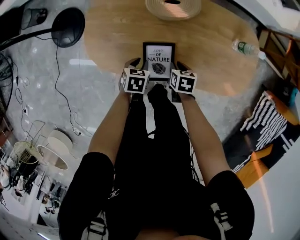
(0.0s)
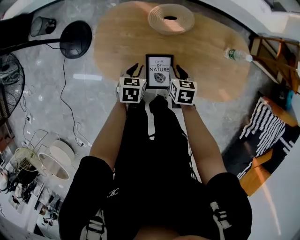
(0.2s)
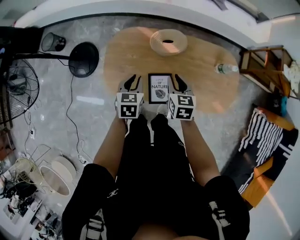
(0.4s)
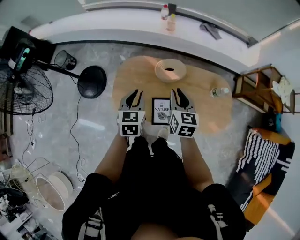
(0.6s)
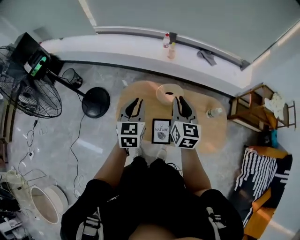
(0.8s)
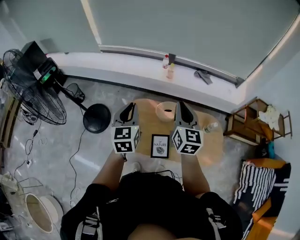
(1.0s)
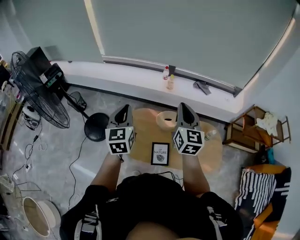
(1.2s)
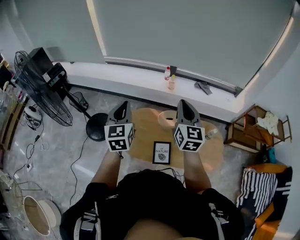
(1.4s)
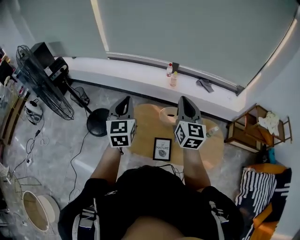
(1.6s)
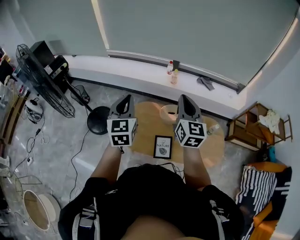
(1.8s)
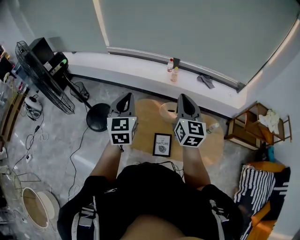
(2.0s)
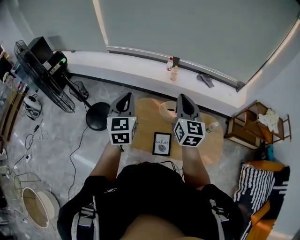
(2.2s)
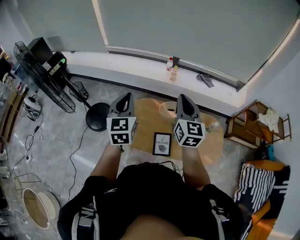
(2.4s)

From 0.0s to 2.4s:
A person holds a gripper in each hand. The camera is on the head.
From 0.0s to 1.2s: The grippers both shift upward by about 70 cm. The left gripper tilts its fingers roughly 60 degrees upward, and closes; the right gripper tips its fingers upward by approximately 60 degrees, and closes up.
From 1.2s to 2.4s: The grippers make only small movements.

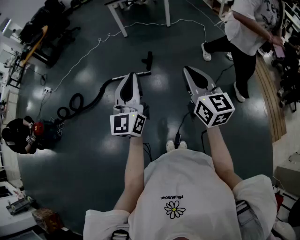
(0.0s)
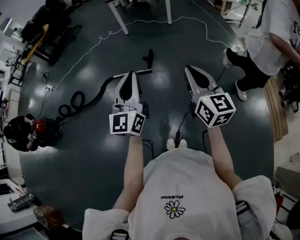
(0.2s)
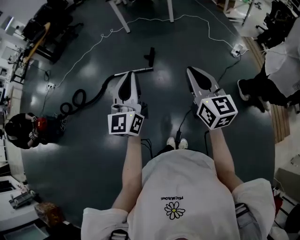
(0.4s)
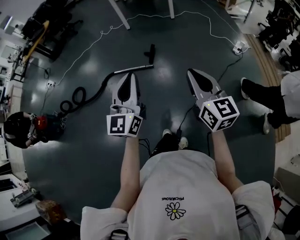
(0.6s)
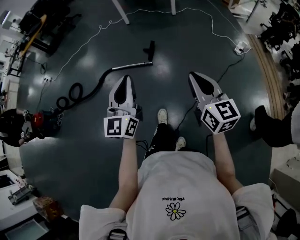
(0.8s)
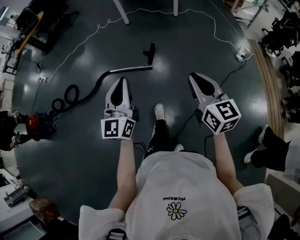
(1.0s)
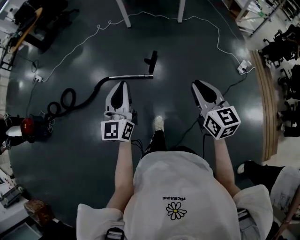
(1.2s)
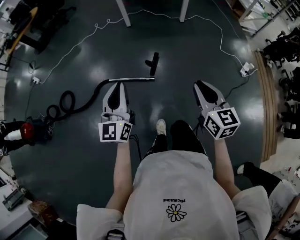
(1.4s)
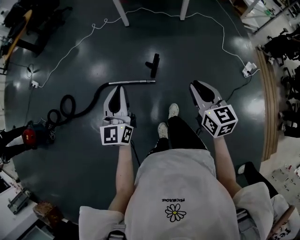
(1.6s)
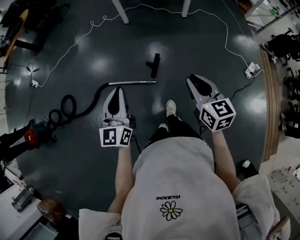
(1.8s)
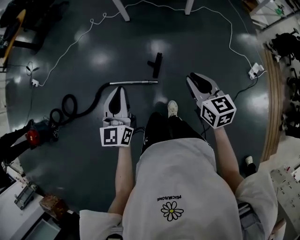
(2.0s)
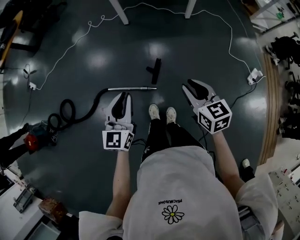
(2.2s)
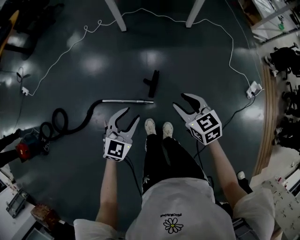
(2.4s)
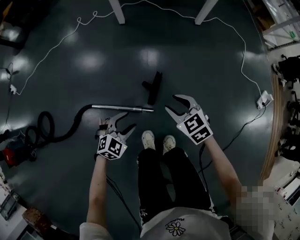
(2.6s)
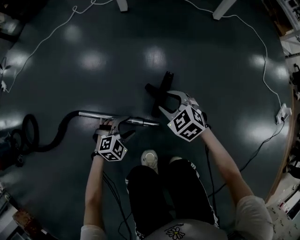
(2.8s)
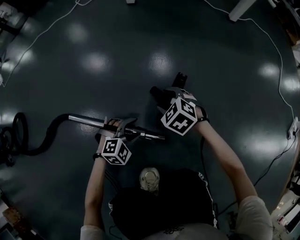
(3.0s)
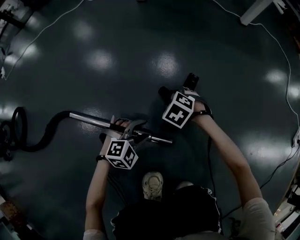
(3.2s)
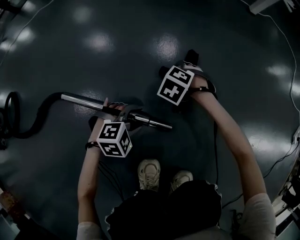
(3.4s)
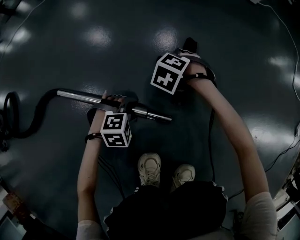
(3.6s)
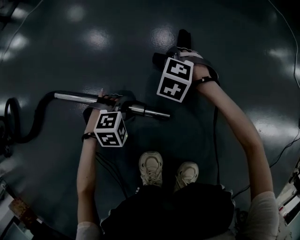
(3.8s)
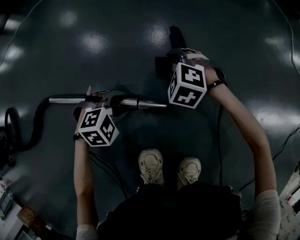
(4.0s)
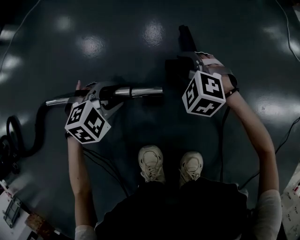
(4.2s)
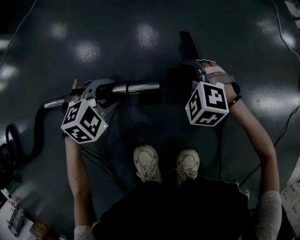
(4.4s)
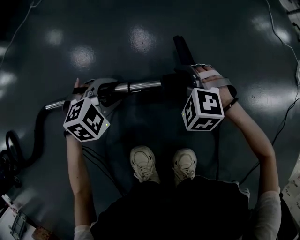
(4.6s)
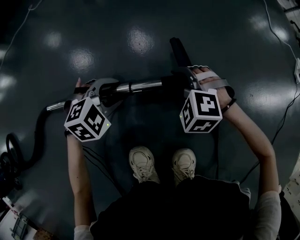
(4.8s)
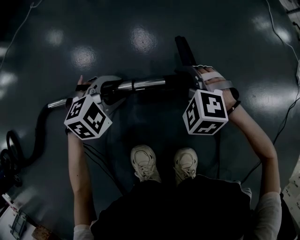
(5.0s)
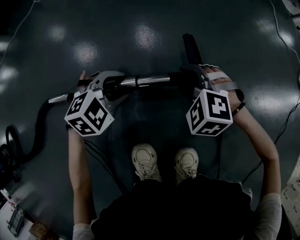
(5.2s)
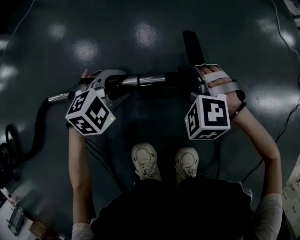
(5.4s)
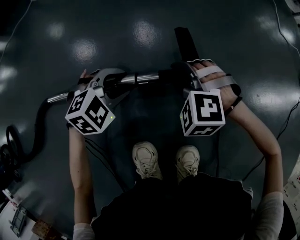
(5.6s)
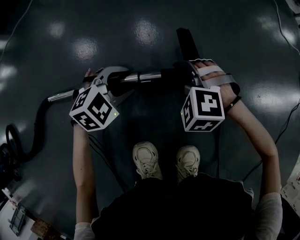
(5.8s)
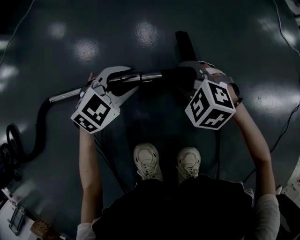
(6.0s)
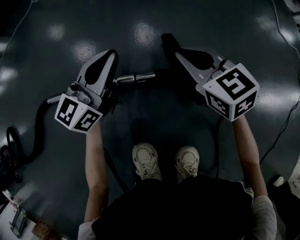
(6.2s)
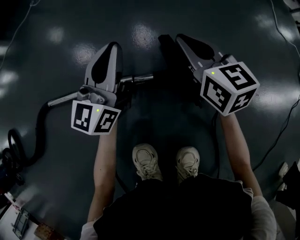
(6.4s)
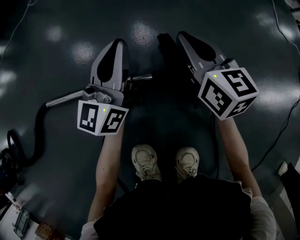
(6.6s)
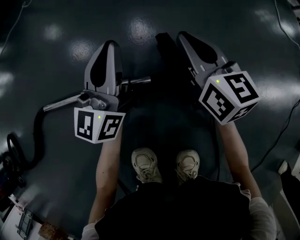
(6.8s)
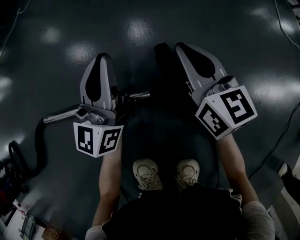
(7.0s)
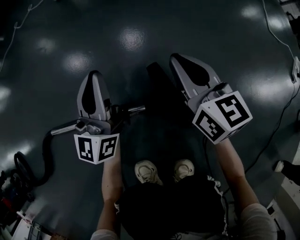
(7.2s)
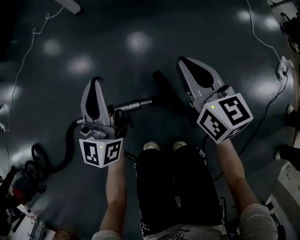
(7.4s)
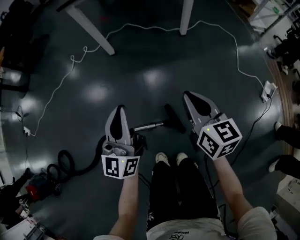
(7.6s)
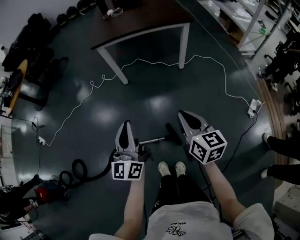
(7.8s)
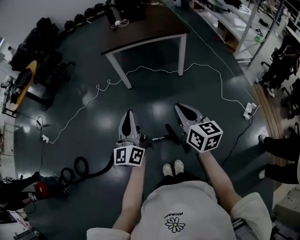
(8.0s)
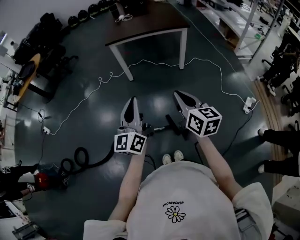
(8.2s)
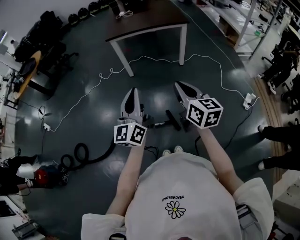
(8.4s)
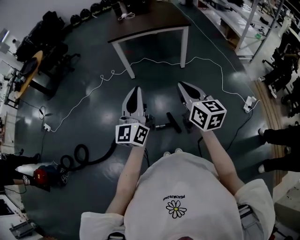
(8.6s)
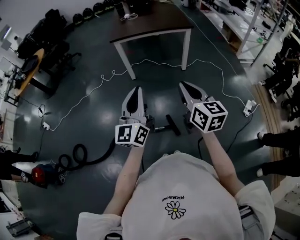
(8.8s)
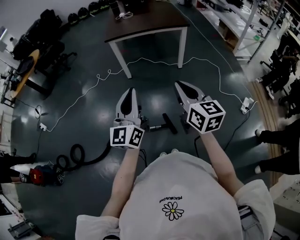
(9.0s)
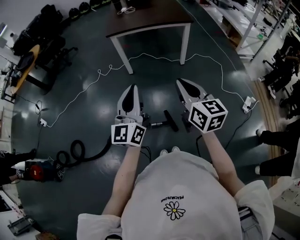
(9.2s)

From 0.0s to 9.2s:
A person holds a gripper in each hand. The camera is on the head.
From 0.0s to 1.6s: The grippers both shift forward by approximately 35 cm. The right gripper changes its angle by approximately 20 degrees.
From 1.6s to 3.0s: The left gripper is displaced downward by some 80 cm, points its fingers roughly 60 degrees further downward, and opens, while the right gripper shifts roughly 80 cm downward and forward, tips its fingers downward by approximately 30 degrees, and opens up.
From 3.0s to 4.6s: The left gripper moves upward, about 5 cm. Meanwhile the right gripper moves some 10 cm downward and comes back, and changes its angle by approximately 20 degrees.
From 4.6s to 6.2s: The left gripper moves upward and forward, about 15 cm, angles its fingers upward, by some 60 degrees, and closes up. The right gripper shifts approximately 10 cm upward, twists roughly 50 degrees clockwise, seen from behind, and closes.
From 6.2s to 7.6s: The two grippers go approximately 60 cm upward. The right gripper changes its angle by some 30 degrees; the left gripper turns by some 30 degrees.
From 7.6s to 9.2s: Both grippers travel together upward and backward, some 40 cm.

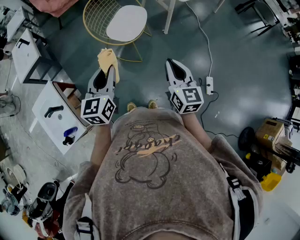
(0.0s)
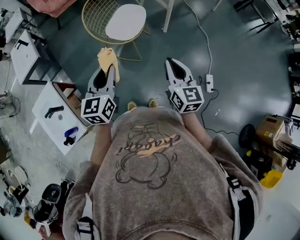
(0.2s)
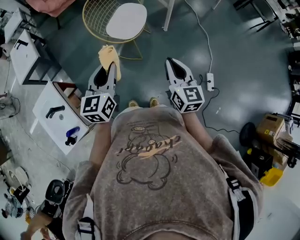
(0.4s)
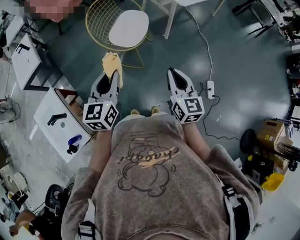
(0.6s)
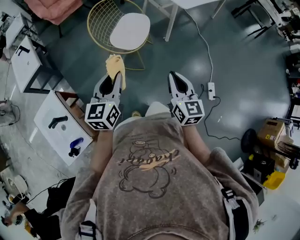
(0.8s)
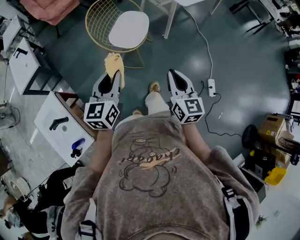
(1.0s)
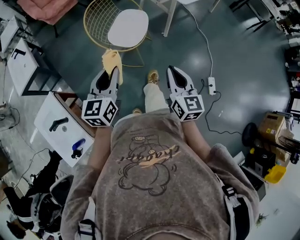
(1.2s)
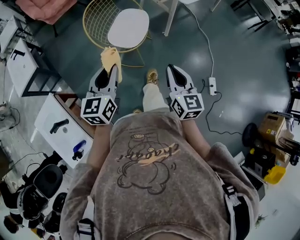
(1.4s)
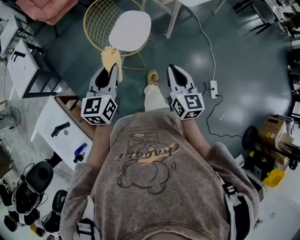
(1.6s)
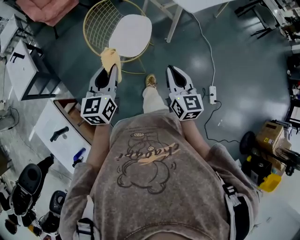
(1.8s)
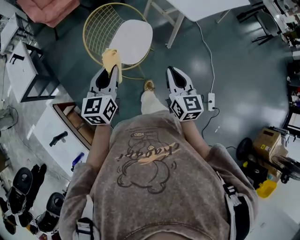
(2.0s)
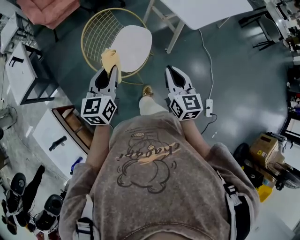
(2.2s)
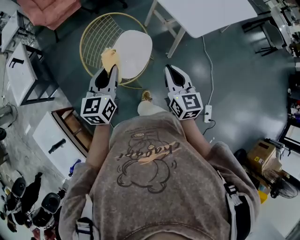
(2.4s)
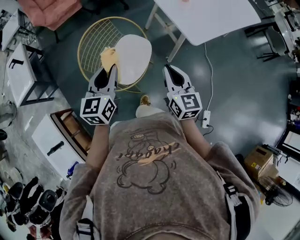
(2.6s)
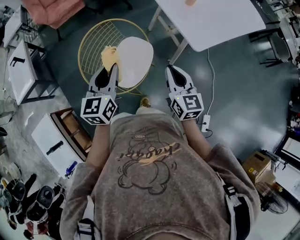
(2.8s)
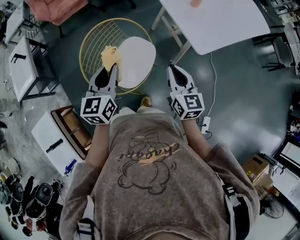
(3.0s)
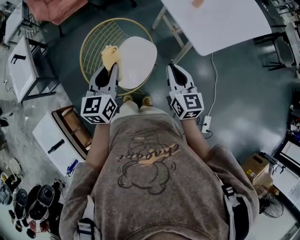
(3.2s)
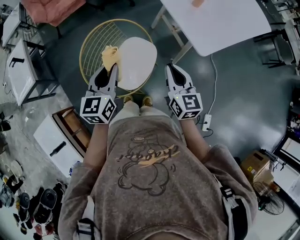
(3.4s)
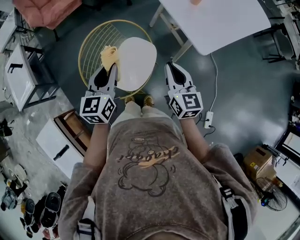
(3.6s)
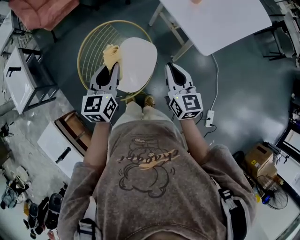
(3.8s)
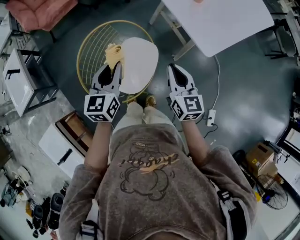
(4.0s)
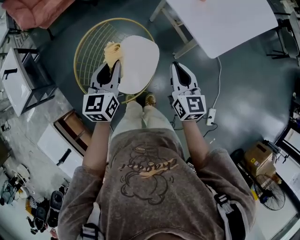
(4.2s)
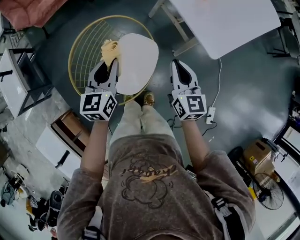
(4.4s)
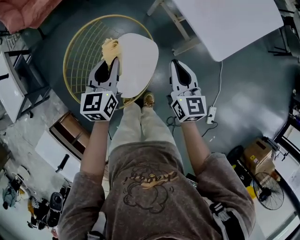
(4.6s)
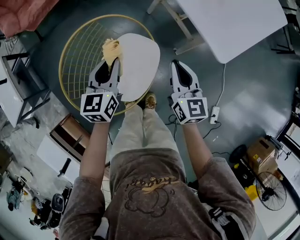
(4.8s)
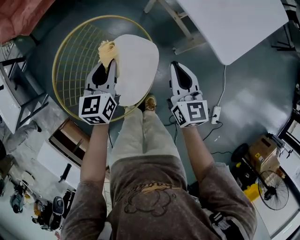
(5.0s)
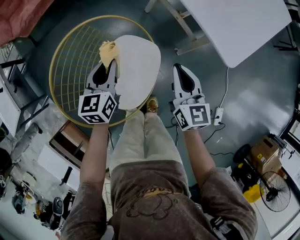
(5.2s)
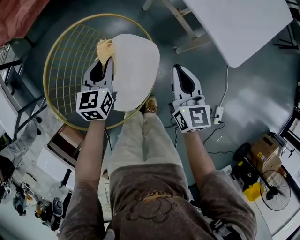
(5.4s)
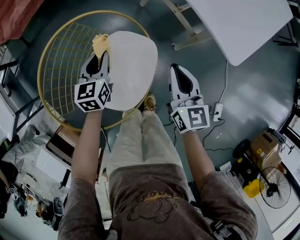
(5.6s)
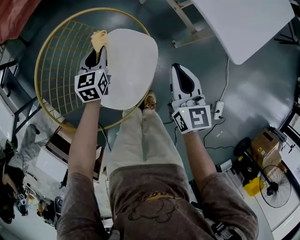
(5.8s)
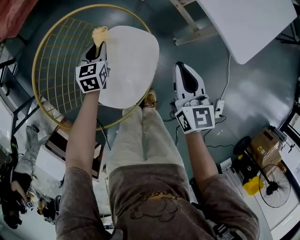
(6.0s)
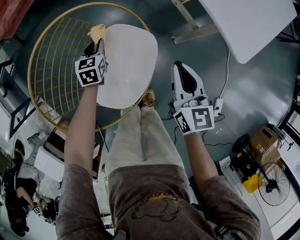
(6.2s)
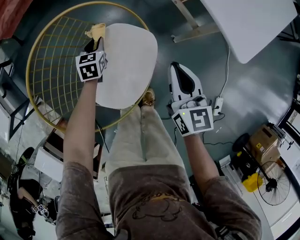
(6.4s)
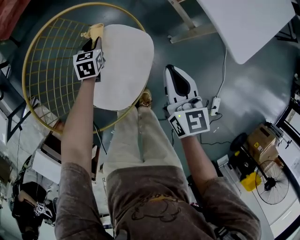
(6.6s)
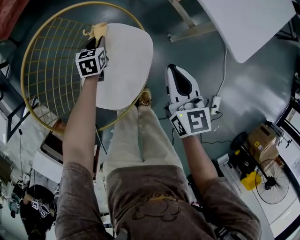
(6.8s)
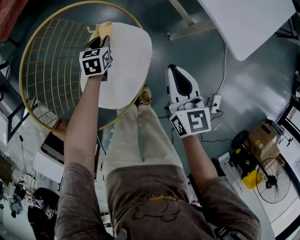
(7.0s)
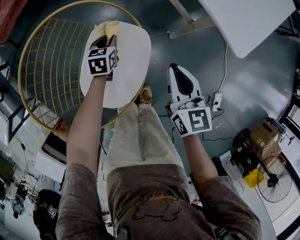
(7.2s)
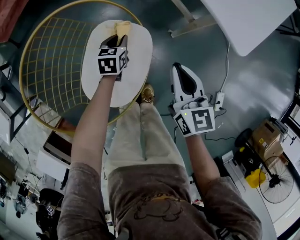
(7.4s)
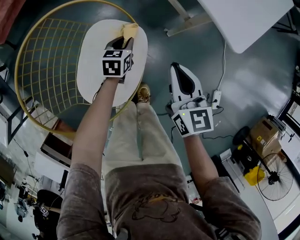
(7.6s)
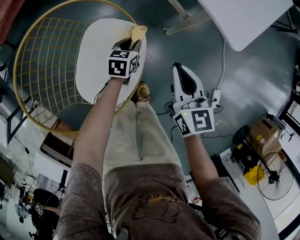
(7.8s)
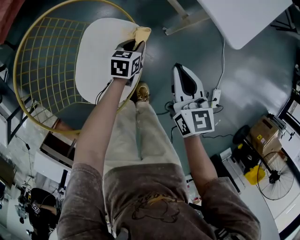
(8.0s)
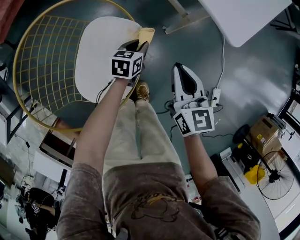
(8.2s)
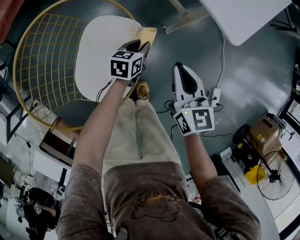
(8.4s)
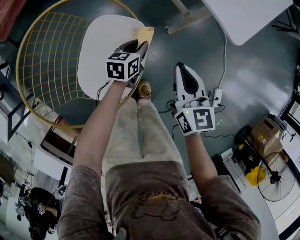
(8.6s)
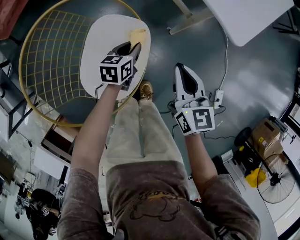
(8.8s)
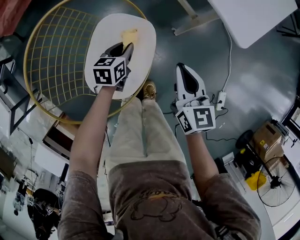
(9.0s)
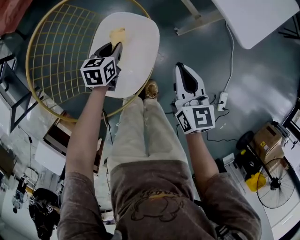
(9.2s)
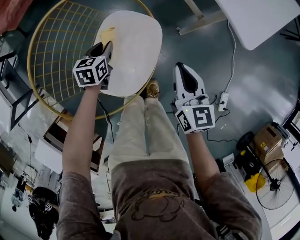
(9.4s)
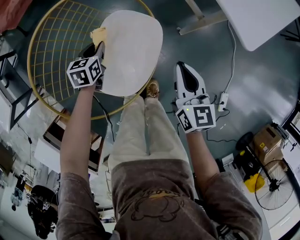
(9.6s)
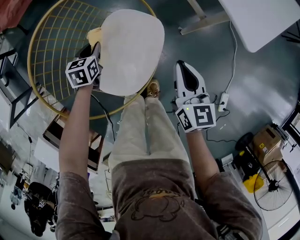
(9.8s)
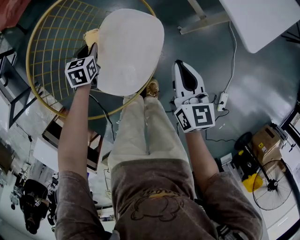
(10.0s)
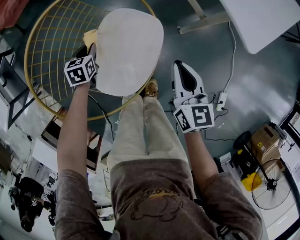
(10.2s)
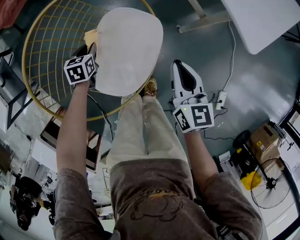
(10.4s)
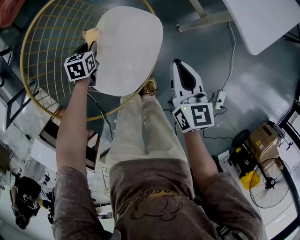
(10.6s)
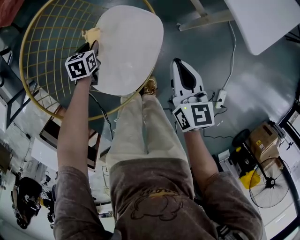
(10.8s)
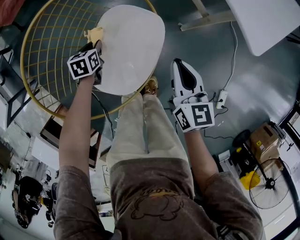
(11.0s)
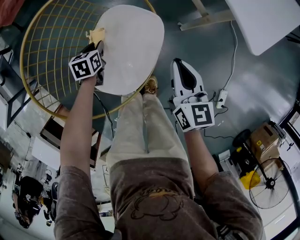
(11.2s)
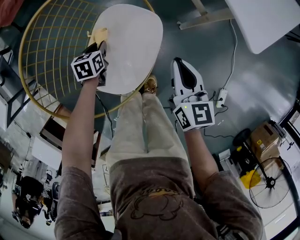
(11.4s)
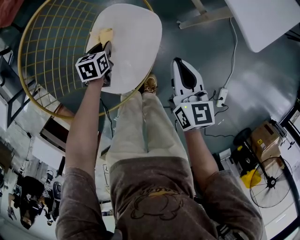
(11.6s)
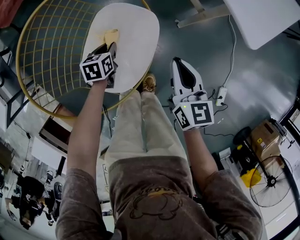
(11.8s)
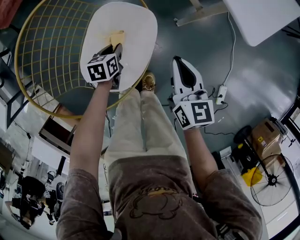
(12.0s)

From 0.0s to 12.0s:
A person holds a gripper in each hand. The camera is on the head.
From 0.0s to 1.6s: The two grippers go some 10 cm forward and to the left.
From 1.6s to 3.0s: Both grippers travel together forward, some 30 cm.
From 3.0s to 4.4s: Both grippers move forward and downward, roughly 15 cm.
From 4.4s to 6.0s: The right gripper travels downward by roughly 15 cm, while the left gripper moves downward, some 35 cm, and rotates some 20 degrees.
From 6.0s to 7.6s: The left gripper moves to the right, some 15 cm.
From 7.6s to 9.0s: The left gripper travels backward by roughly 5 cm, and moves about 10 cm to the right and comes back.
From 9.0s to 10.4s: The left gripper is displaced to the left by approximately 20 cm, and rotates approximately 20 degrees.
From 10.4s to 12.0s: The left gripper goes some 15 cm to the right.
